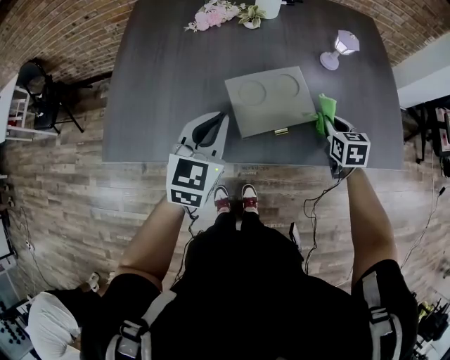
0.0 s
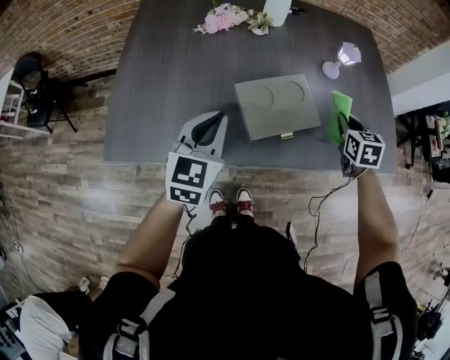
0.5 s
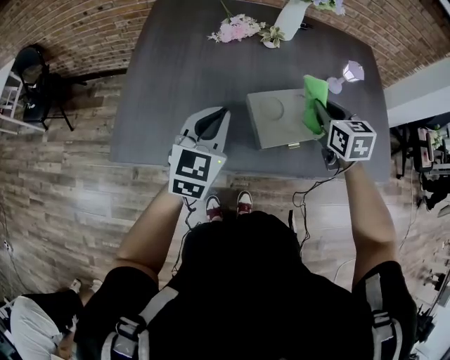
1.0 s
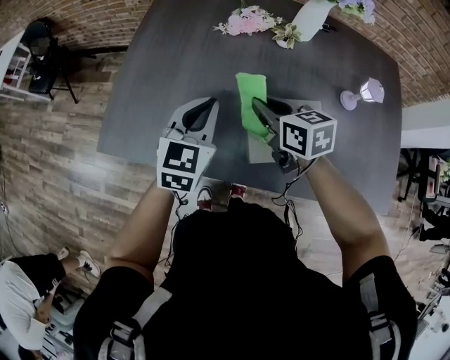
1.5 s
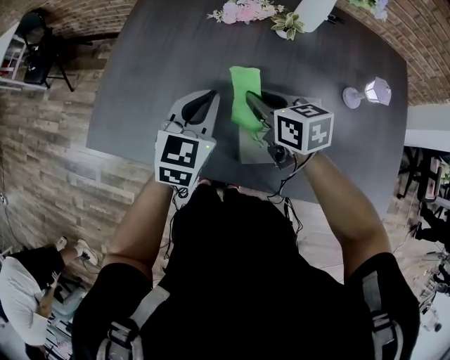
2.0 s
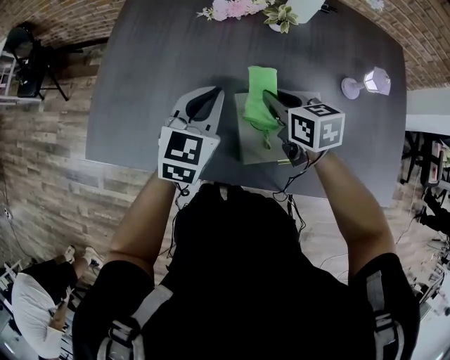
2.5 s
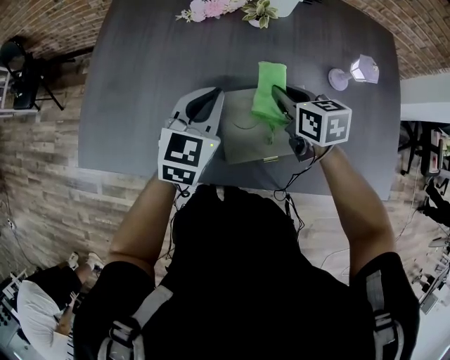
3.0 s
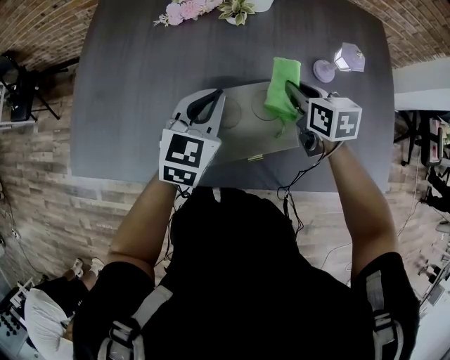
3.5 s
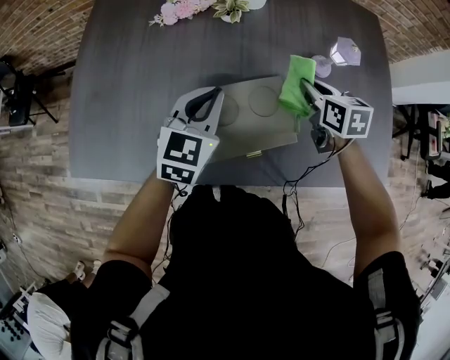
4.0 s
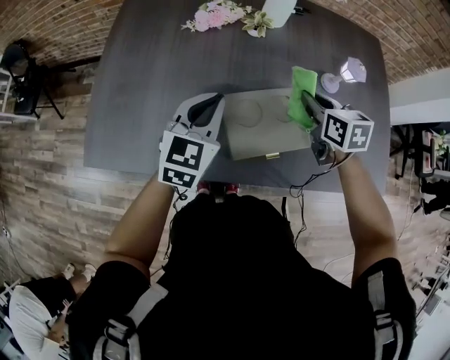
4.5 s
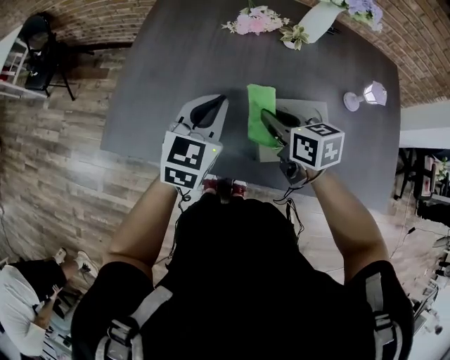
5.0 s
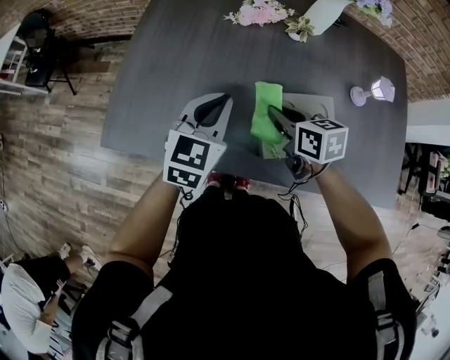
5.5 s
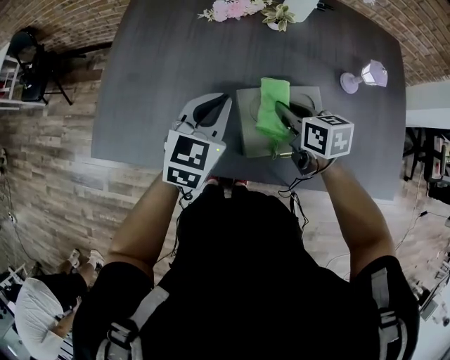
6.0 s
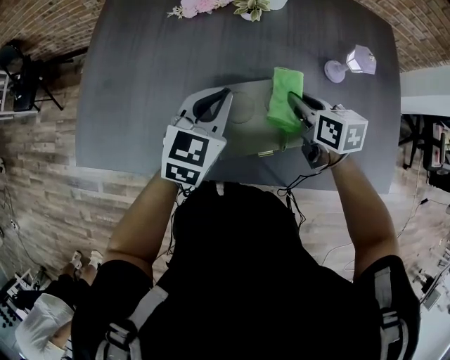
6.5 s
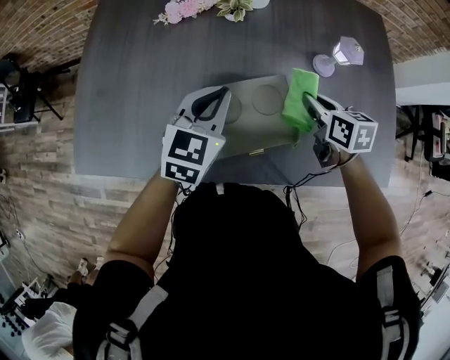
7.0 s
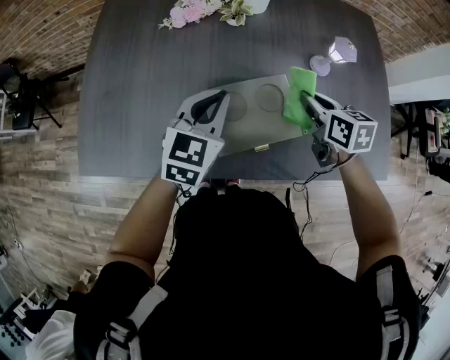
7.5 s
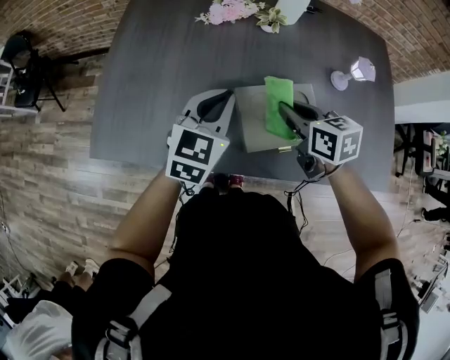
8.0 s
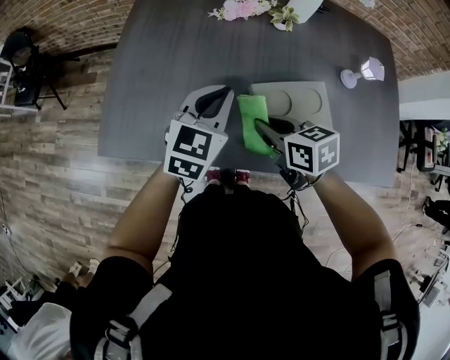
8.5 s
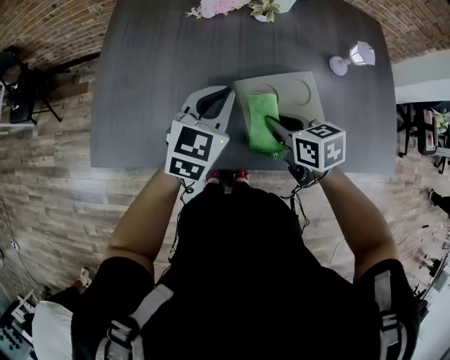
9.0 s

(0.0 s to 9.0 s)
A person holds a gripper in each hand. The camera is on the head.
0.0 s - 2.0 s: The right gripper moves roughly 30 cm, and swivels about 40 degrees; the left gripper changes place by approximately 15 cm.
2.0 s - 4.5 s: The left gripper shifts roughly 5 cm to the right, while the right gripper shifts about 20 cm to the right, and changes its angle by about 20 degrees.
4.5 s - 7.0 s: The left gripper is displaced to the right by approximately 10 cm, while the right gripper is displaced downward by roughly 5 cm, and travels to the left and back again, some 20 cm each way.
7.0 s - 9.0 s: The right gripper heads to the left, covering about 20 cm. The left gripper shifts roughly 10 cm to the left.

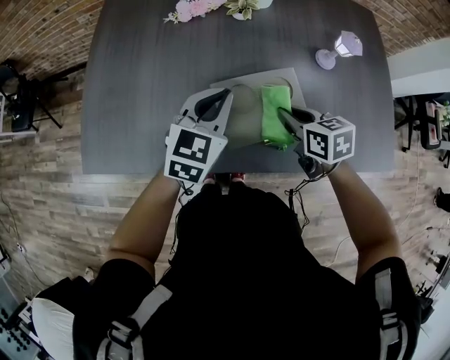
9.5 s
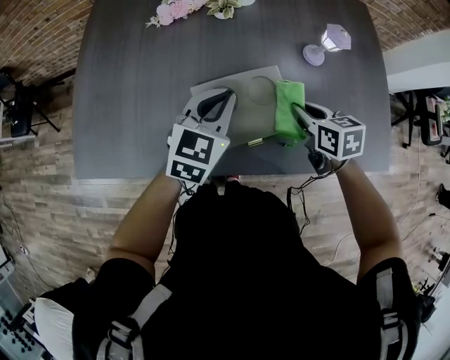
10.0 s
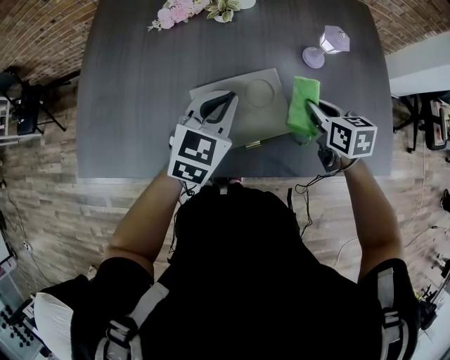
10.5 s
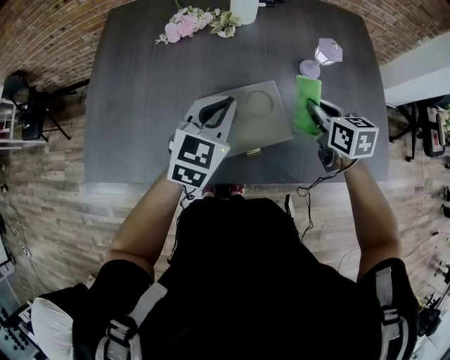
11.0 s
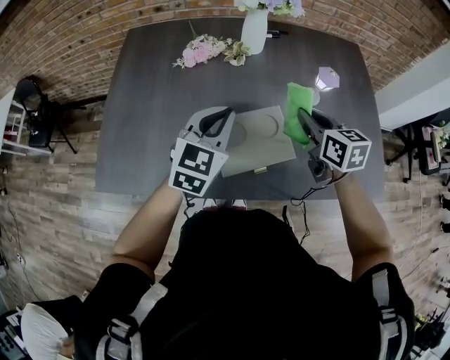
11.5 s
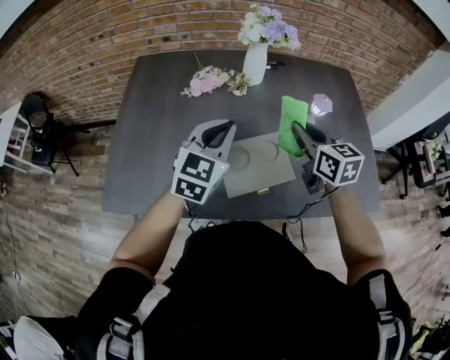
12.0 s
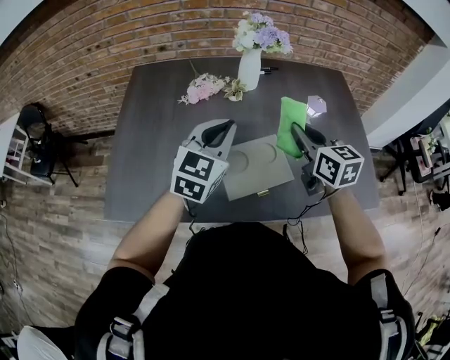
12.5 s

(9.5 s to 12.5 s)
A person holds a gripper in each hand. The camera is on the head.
9.5 s - 11.0 s: The left gripper is displaced to the right by roughly 5 cm, while the right gripper moves to the right and forward, about 15 cm.
11.0 s - 12.5 s: The left gripper travels upward by roughly 10 cm; the right gripper moves upward and to the left, roughly 15 cm, and changes its angle by about 20 degrees.

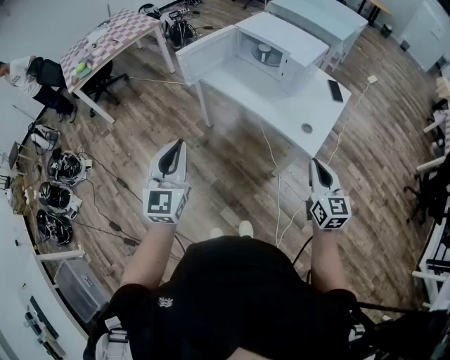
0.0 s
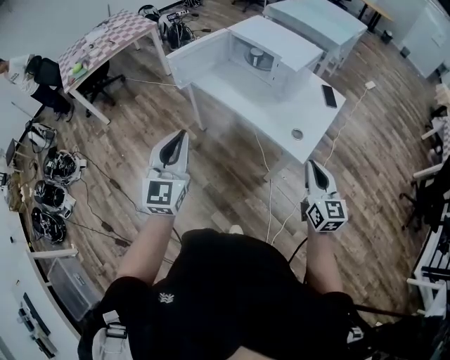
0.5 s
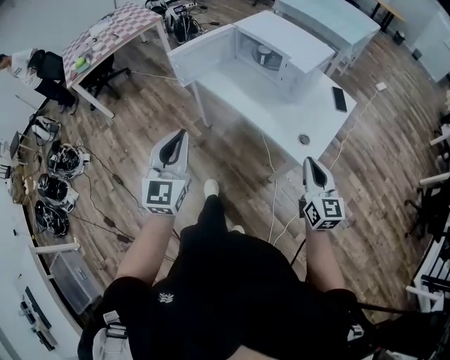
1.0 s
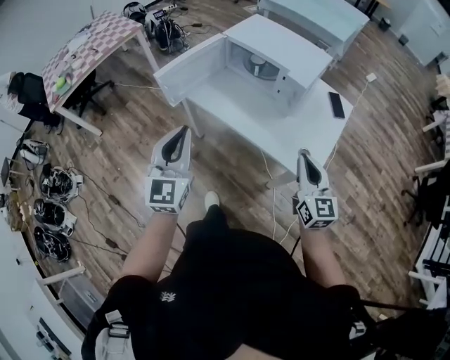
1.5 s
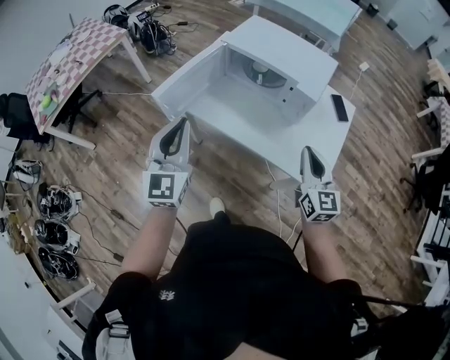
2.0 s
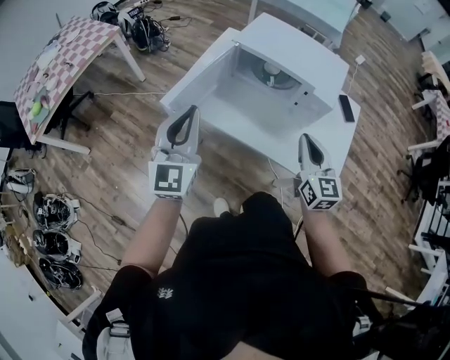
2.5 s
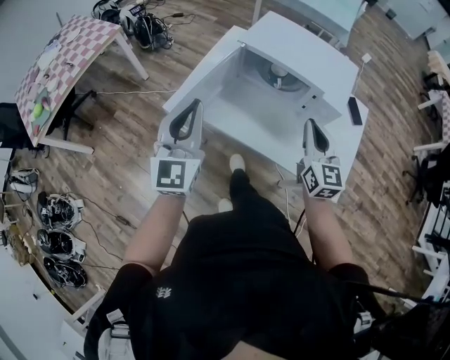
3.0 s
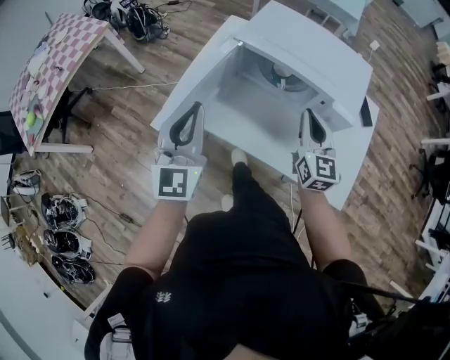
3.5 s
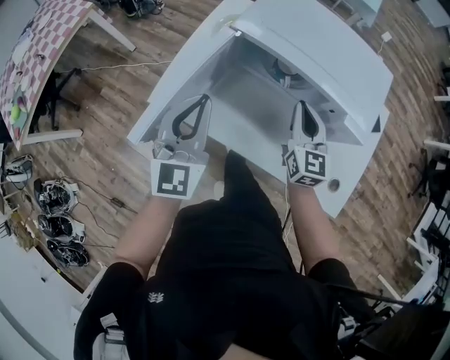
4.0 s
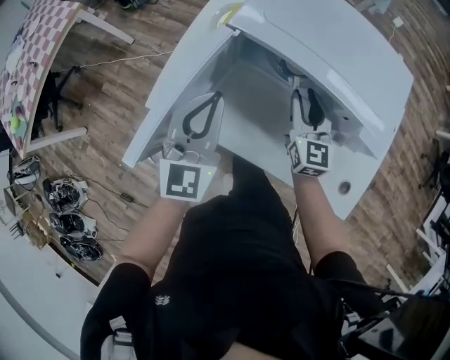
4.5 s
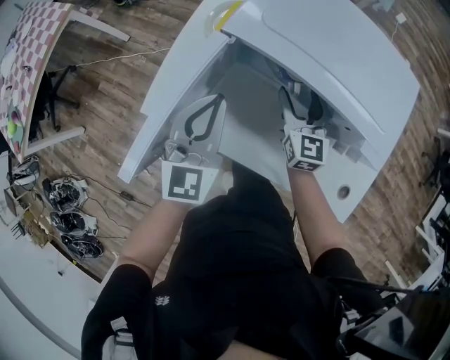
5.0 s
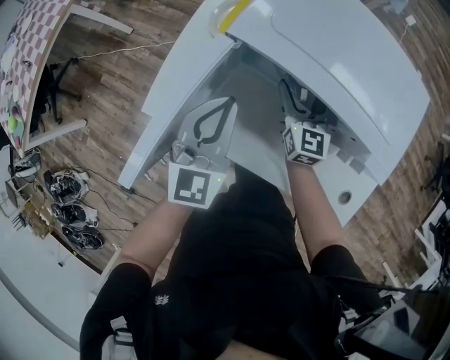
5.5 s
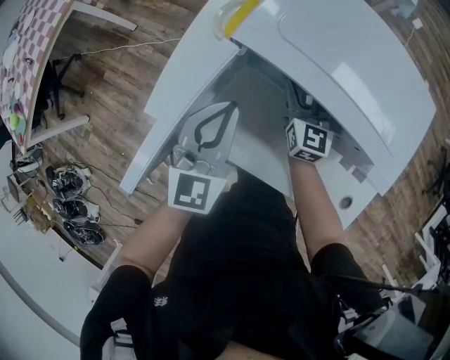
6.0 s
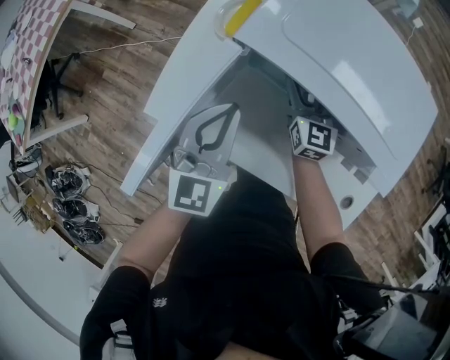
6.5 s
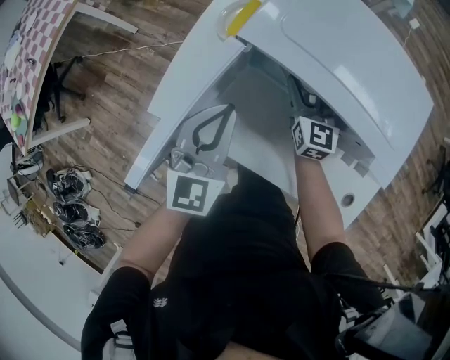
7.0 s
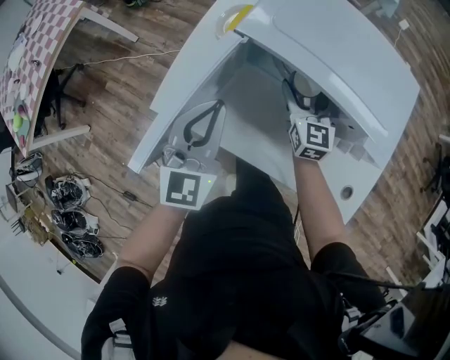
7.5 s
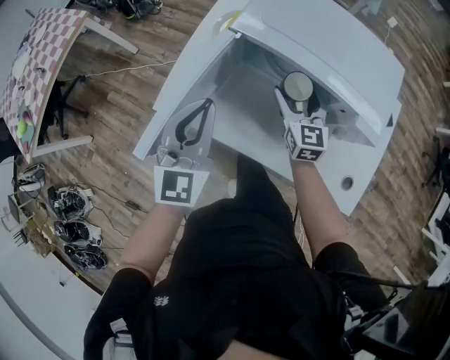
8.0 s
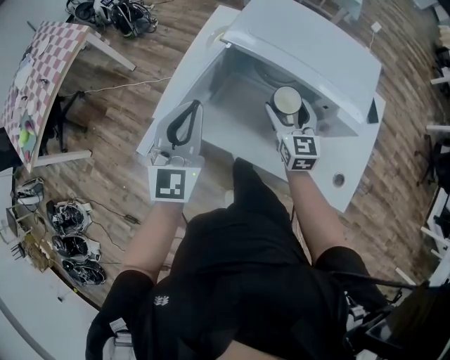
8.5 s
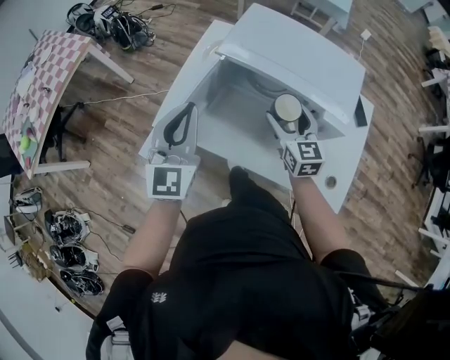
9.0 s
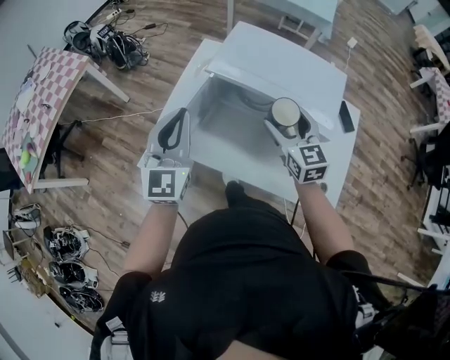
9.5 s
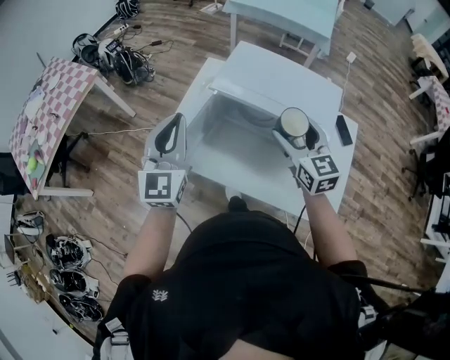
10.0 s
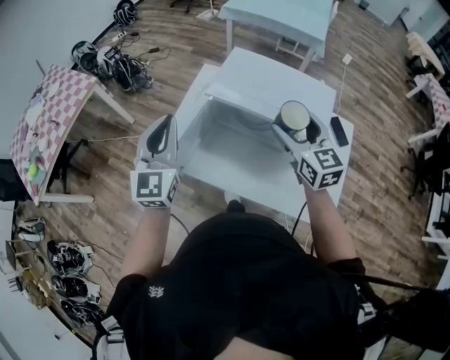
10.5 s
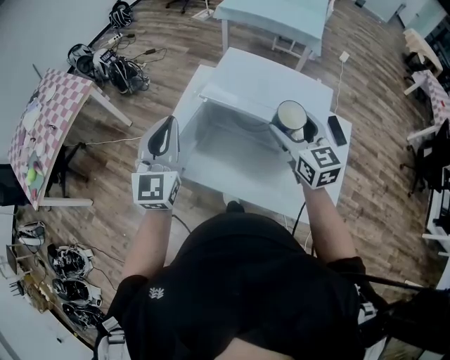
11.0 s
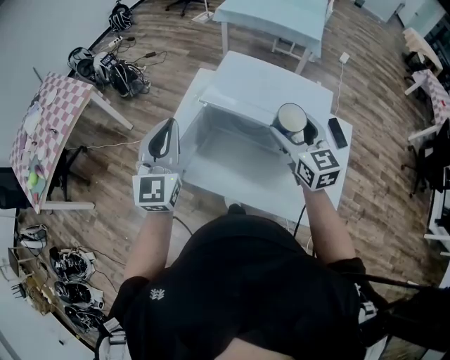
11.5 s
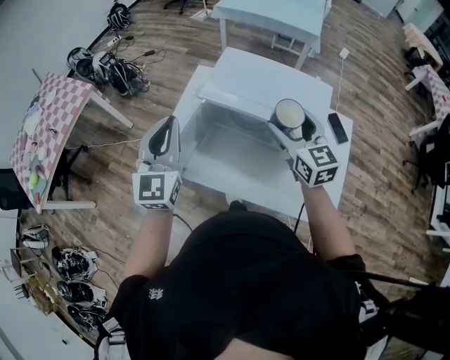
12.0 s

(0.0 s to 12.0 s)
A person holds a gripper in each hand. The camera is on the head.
0.0 s - 2.0 s: The grippers both shift forward by approximately 30 cm.
2.0 s - 4.0 s: The grippers both shift forward and downward by some 35 cm.
4.0 s - 6.0 s: The grippers both shift forward and downward by approximately 15 cm. The right gripper opens.
6.0 s - 8.0 s: Both grippers travel together backward and upward, some 10 cm.
8.0 s - 10.0 s: The left gripper goes roughly 15 cm upward, while the right gripper shifts roughly 25 cm upward and backward.
10.0 s - 12.0 s: The grippers move only a little.

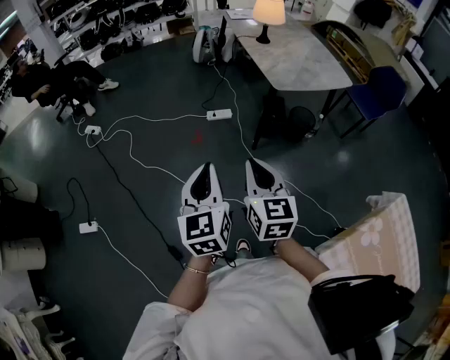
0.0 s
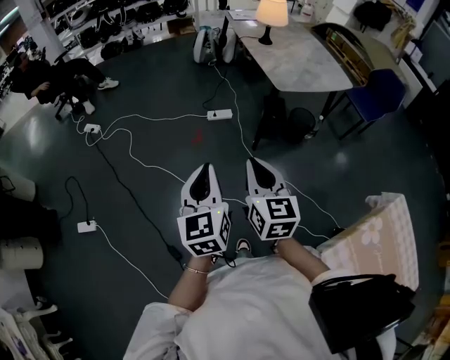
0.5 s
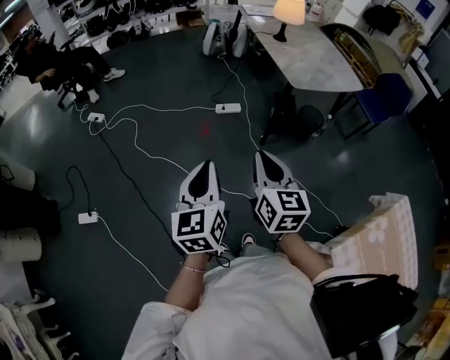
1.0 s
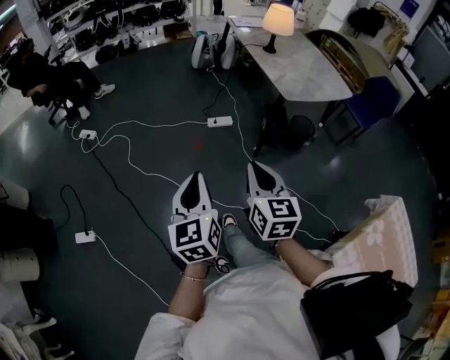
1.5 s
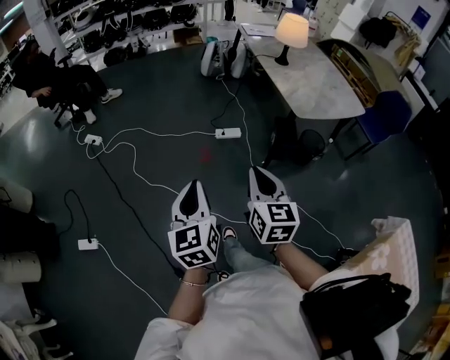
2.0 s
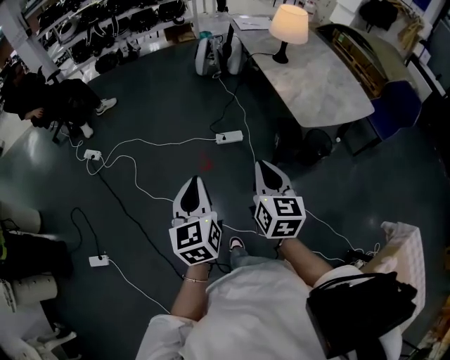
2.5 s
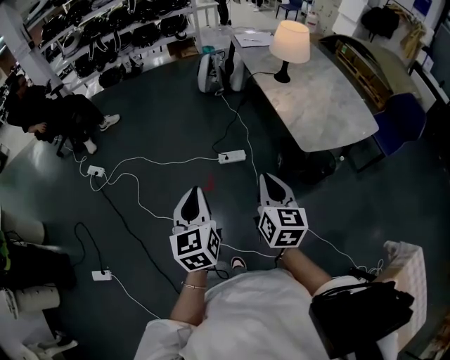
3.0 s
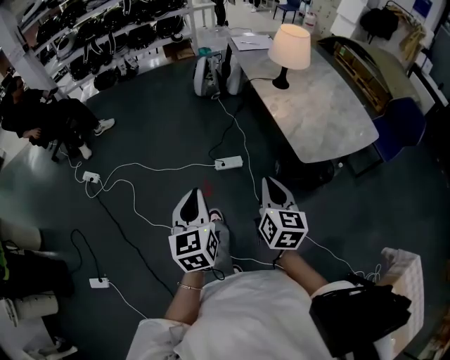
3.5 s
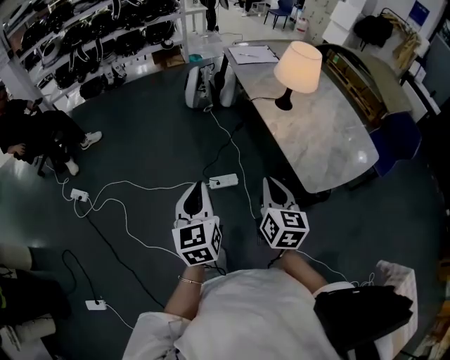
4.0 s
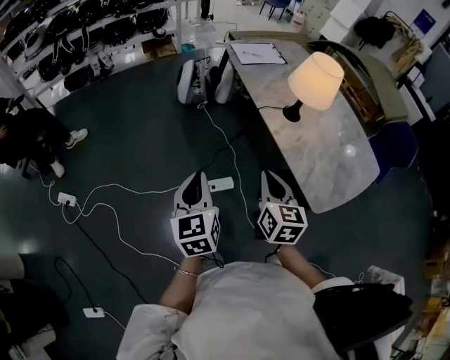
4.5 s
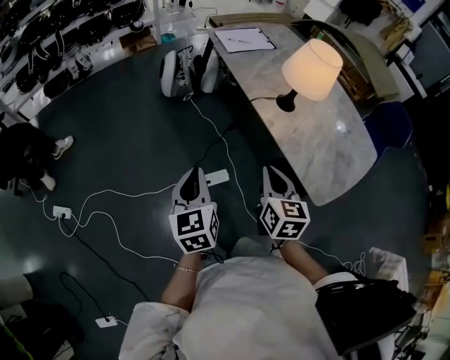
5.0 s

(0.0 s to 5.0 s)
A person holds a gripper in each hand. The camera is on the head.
0.0 s - 2.5 s: The right gripper goes some 25 cm forward. The left gripper moves forward and to the left, roughly 30 cm.
2.5 s - 5.0 s: The two grippers travel together, forward, about 50 cm.
